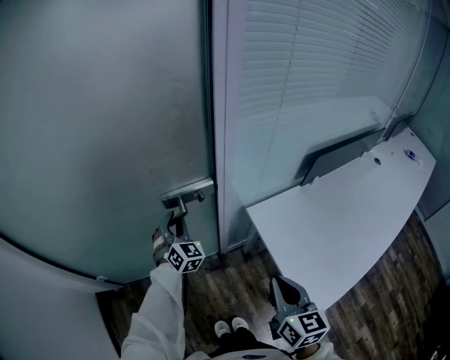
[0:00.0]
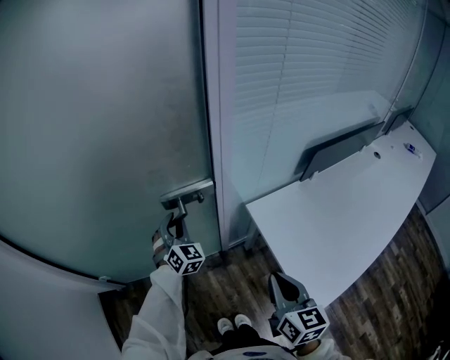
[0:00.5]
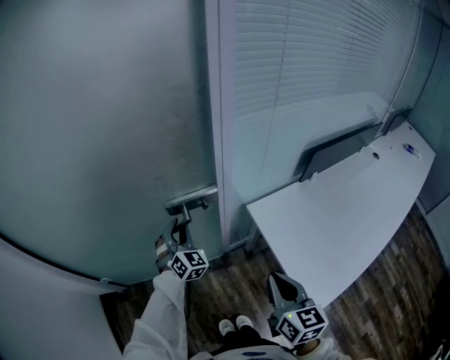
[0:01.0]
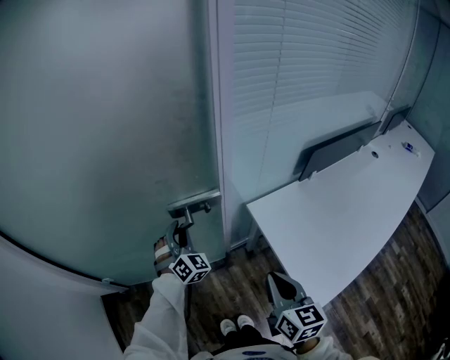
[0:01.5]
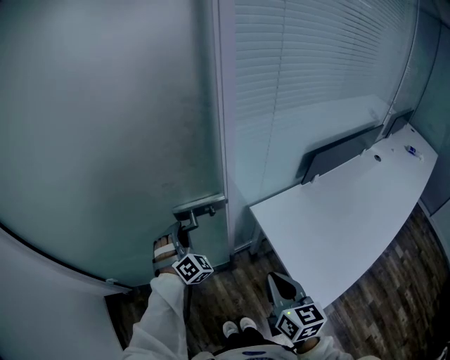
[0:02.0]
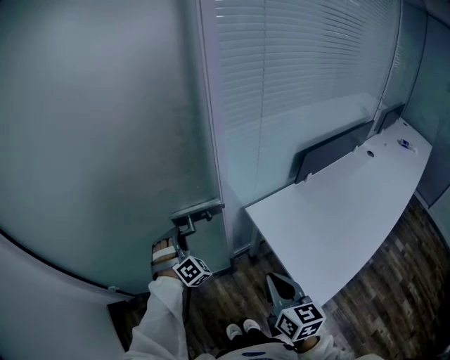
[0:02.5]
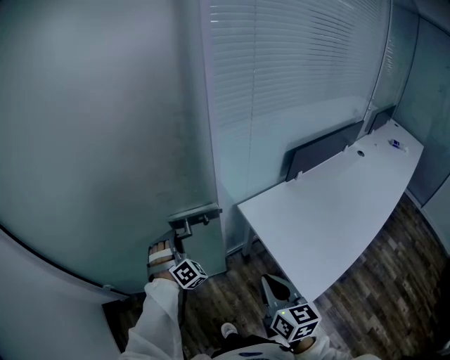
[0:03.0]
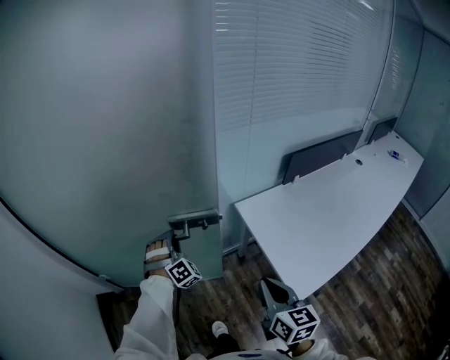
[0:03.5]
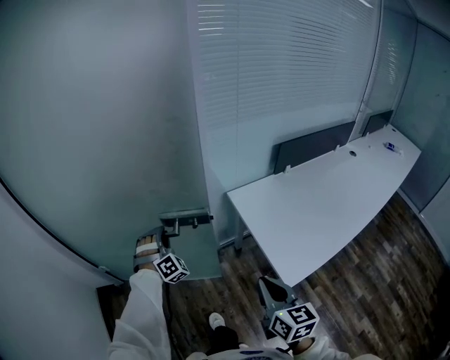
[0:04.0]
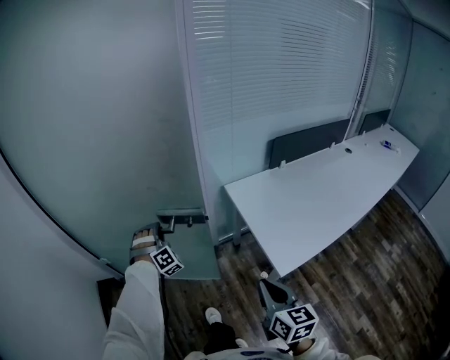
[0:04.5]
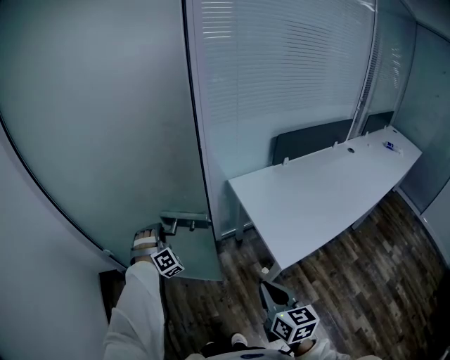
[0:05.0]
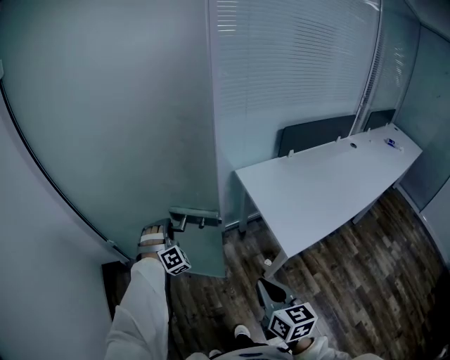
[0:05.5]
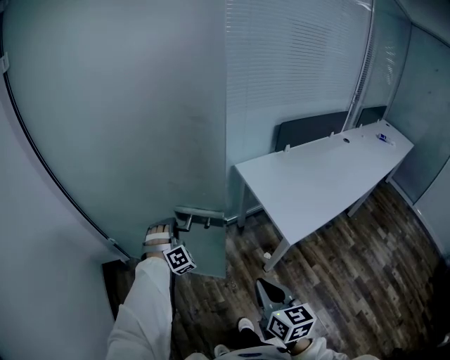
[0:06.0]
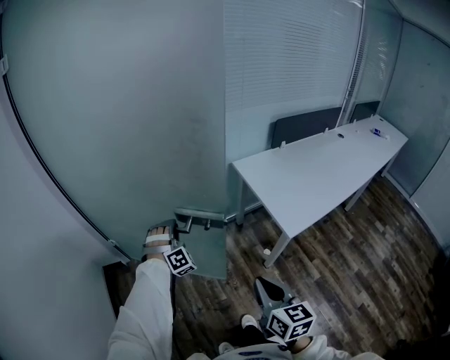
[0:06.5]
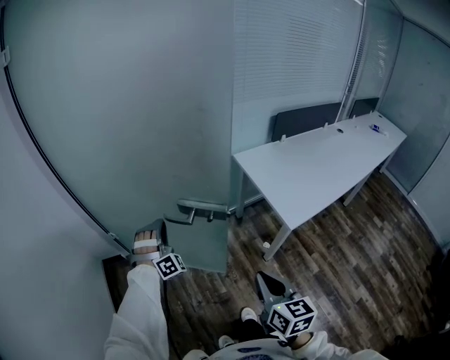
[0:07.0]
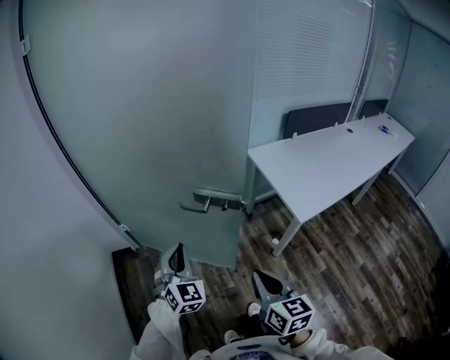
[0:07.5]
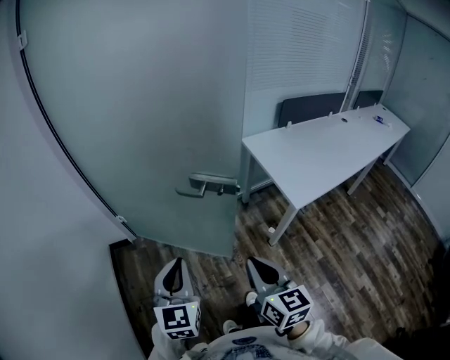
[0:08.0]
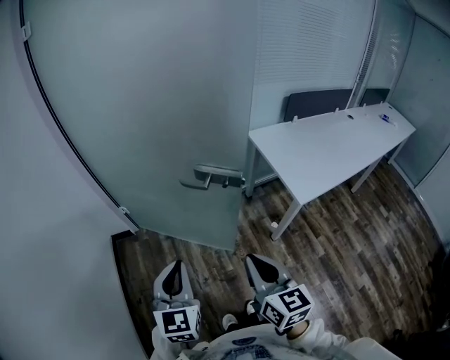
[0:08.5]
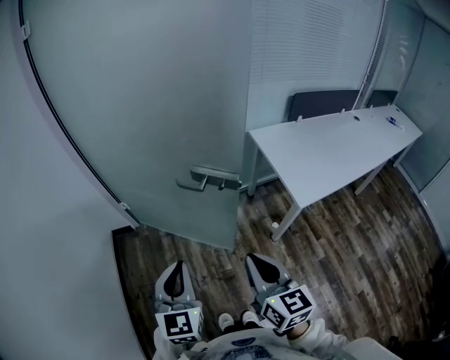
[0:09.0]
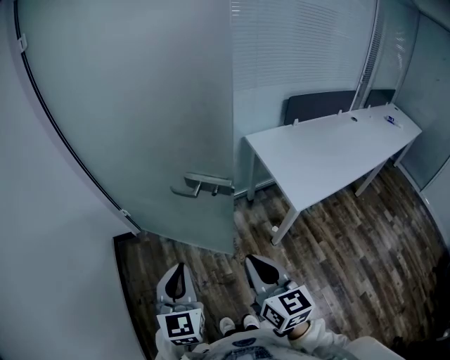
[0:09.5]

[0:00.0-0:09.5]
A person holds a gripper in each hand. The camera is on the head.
0:00.0 to 0:02.0: The left gripper moves backward, roughly 5 cm, and rotates roughly 30 degrees.
0:02.0 to 0:04.0: Both grippers move backward, approximately 15 cm.
0:04.0 to 0:05.5: The two grippers go roughly 15 cm backward and to the left.
0:05.5 to 0:07.5: The left gripper shifts some 25 cm backward and to the left, and twists roughly 50 degrees counterclockwise, seen from behind, while the right gripper goes approximately 15 cm to the left and backward.
0:07.5 to 0:09.5: The left gripper heads backward and upward, covering approximately 15 cm, and rotates approximately 30 degrees. The right gripper travels upward by about 5 cm.

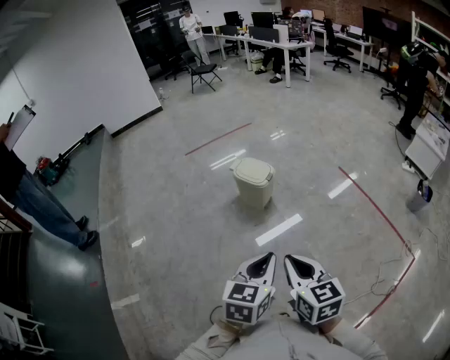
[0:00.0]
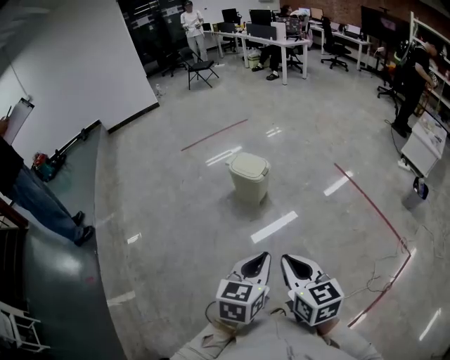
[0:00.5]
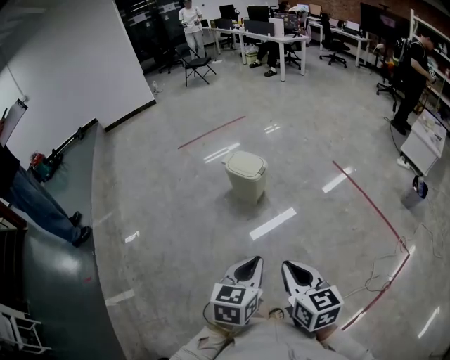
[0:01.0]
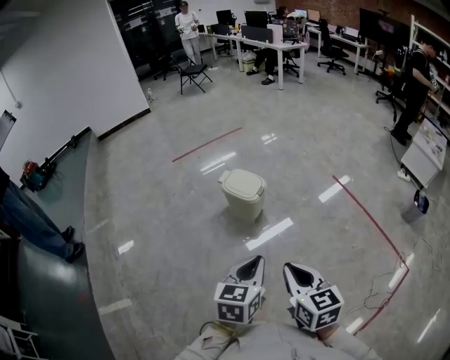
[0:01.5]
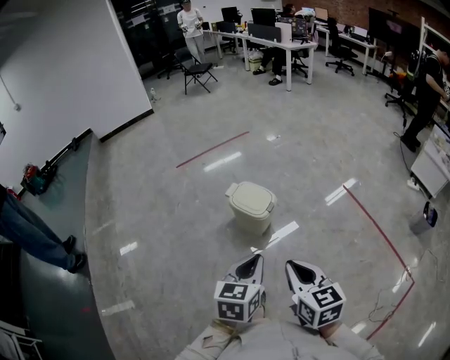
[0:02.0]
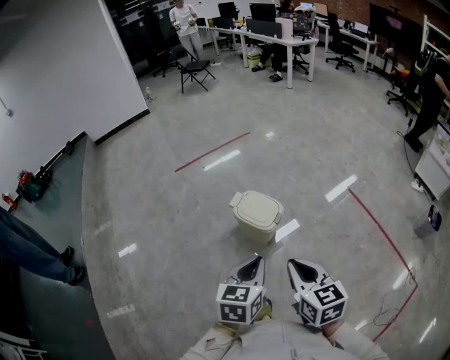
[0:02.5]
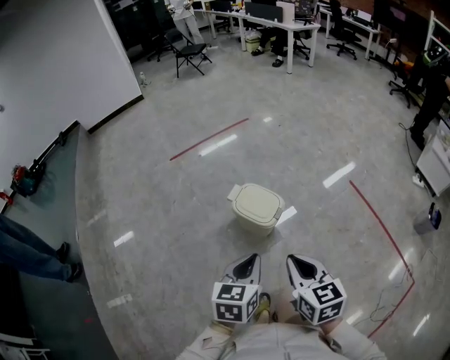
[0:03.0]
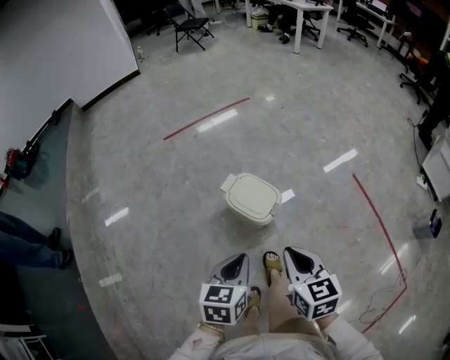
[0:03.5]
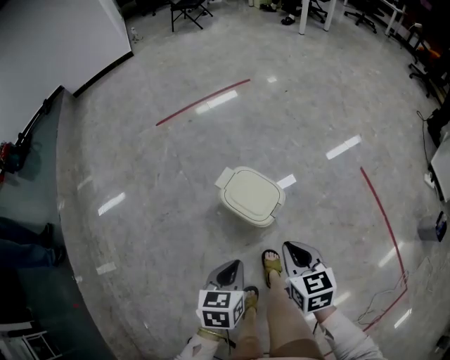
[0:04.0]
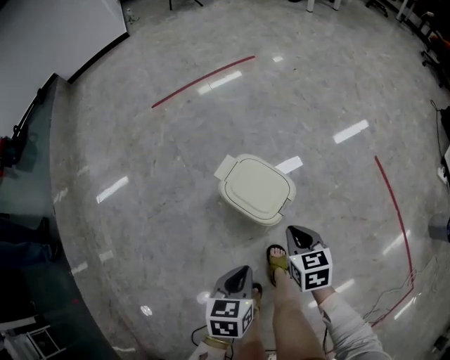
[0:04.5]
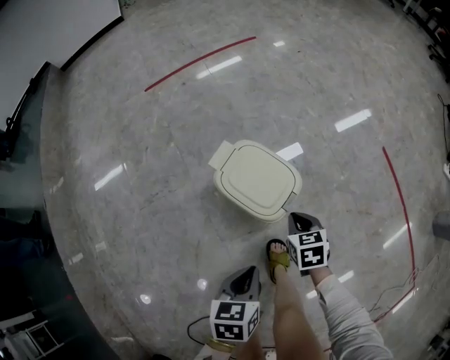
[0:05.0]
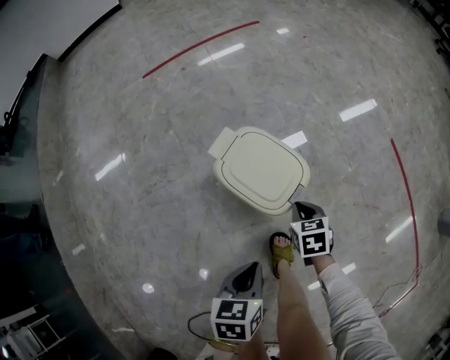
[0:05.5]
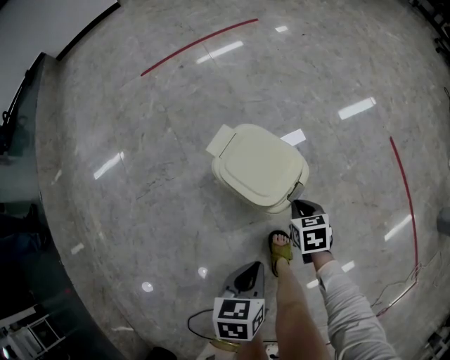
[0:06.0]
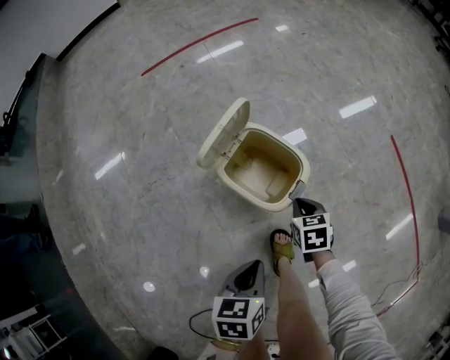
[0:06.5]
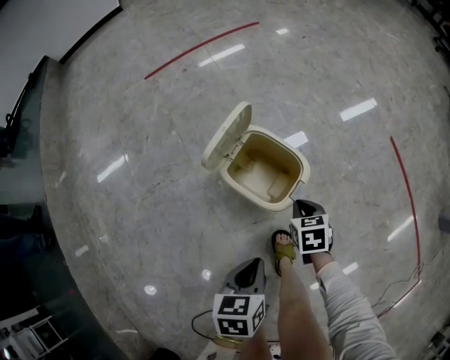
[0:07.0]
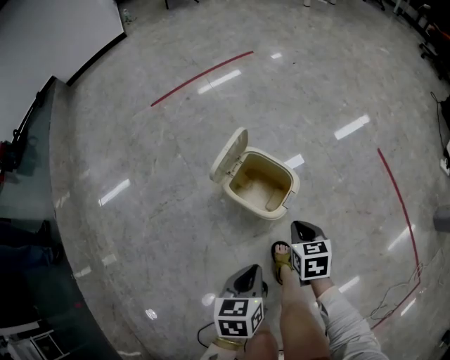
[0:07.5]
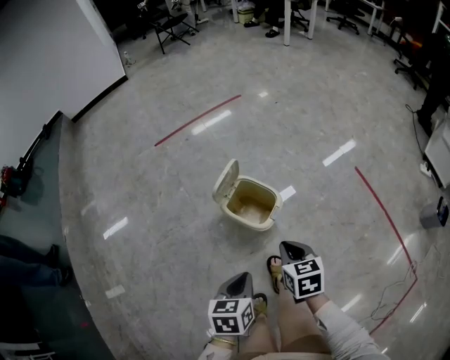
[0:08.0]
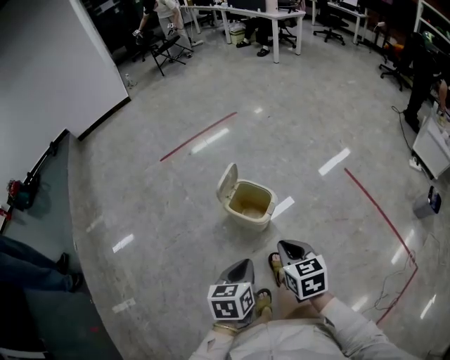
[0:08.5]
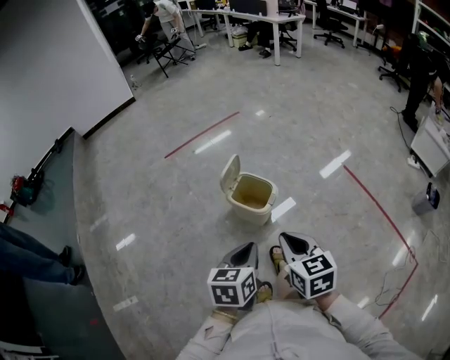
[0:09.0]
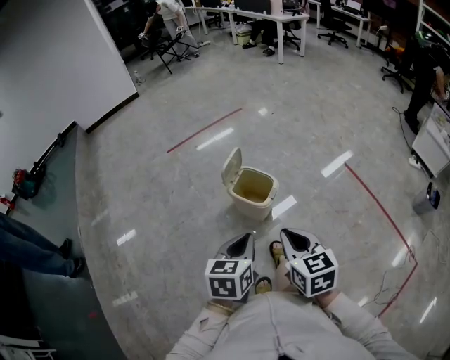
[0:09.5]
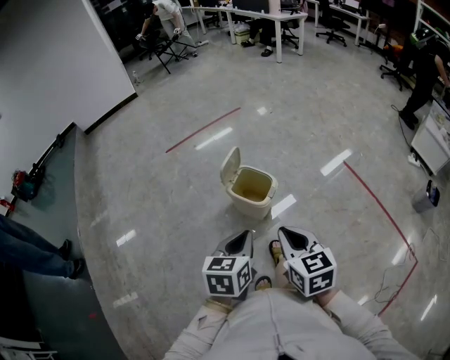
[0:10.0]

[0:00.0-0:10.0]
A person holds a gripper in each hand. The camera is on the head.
0:00.0 to 0:02.0: Both grippers travel together forward, approximately 25 cm.
0:02.0 to 0:04.0: Both grippers travel together forward and downward, some 30 cm. The left gripper turns by roughly 20 degrees.
0:04.0 to 0:06.0: The right gripper goes approximately 35 cm downward, and turns by about 20 degrees. The left gripper moves downward, about 20 cm.
0:06.0 to 0:08.0: The right gripper goes approximately 30 cm upward. The left gripper moves upward, approximately 20 cm.
0:08.0 to 0:10.0: Both grippers move upward and backward, approximately 20 cm.

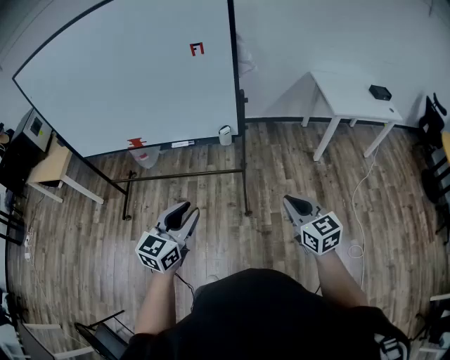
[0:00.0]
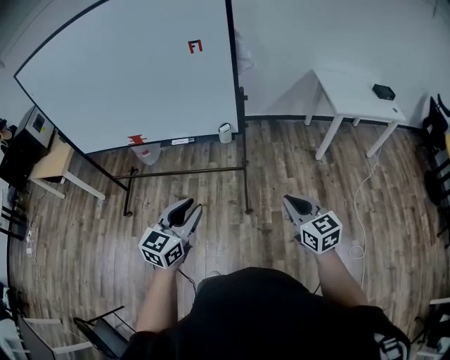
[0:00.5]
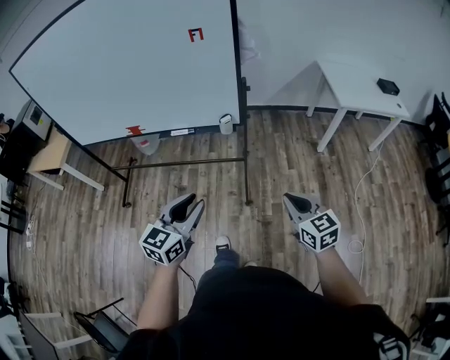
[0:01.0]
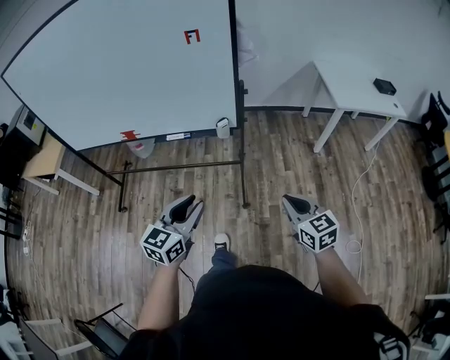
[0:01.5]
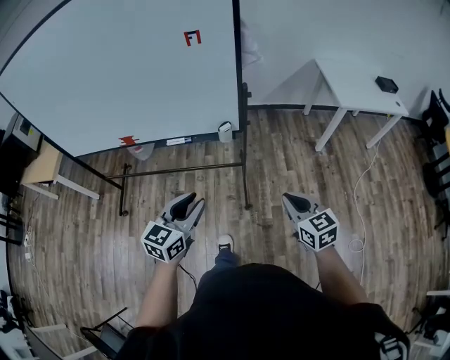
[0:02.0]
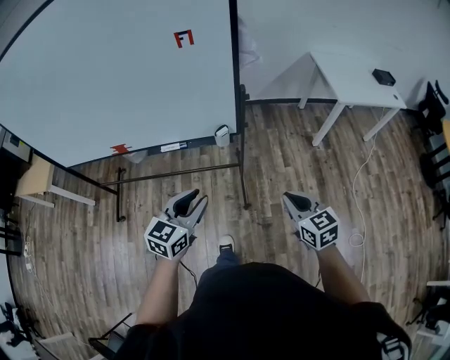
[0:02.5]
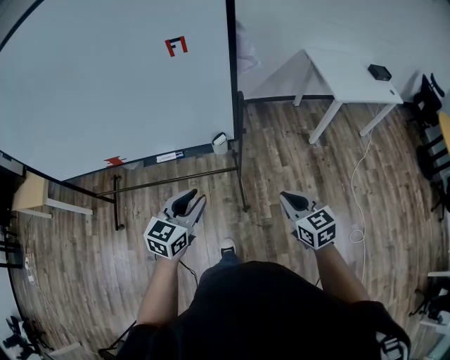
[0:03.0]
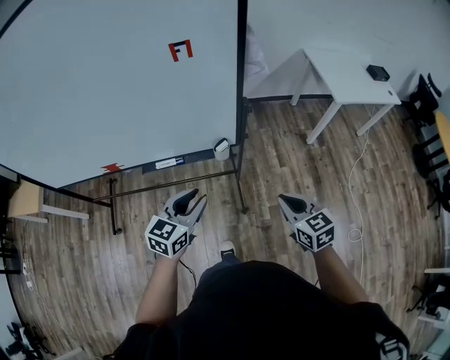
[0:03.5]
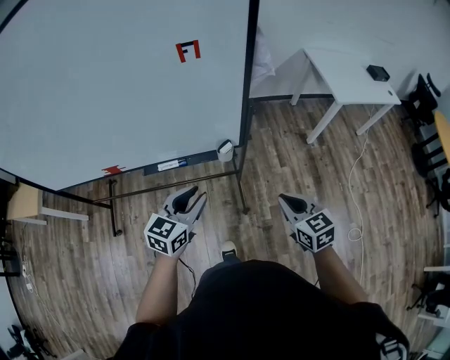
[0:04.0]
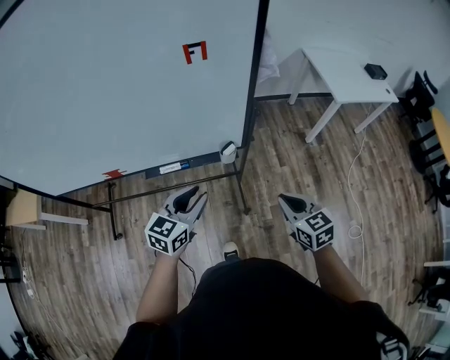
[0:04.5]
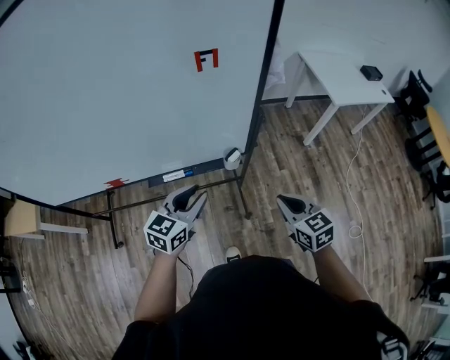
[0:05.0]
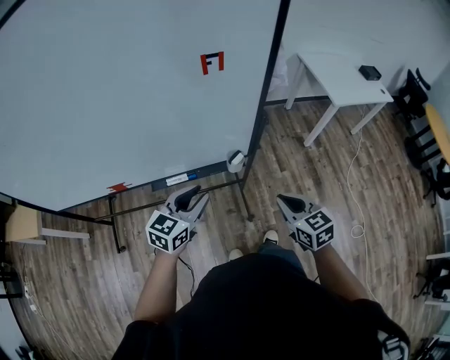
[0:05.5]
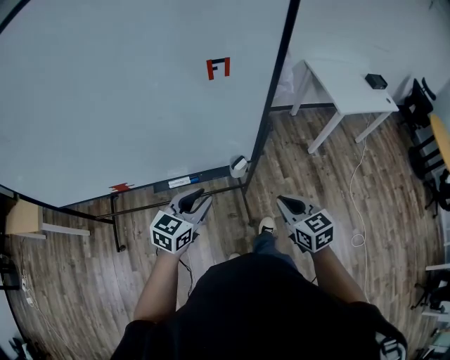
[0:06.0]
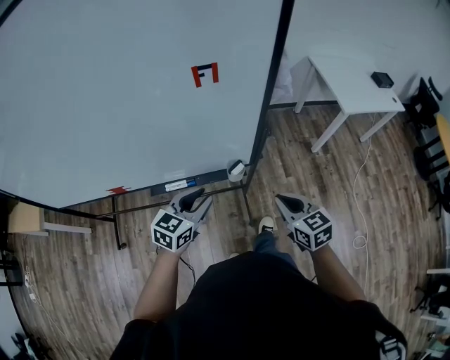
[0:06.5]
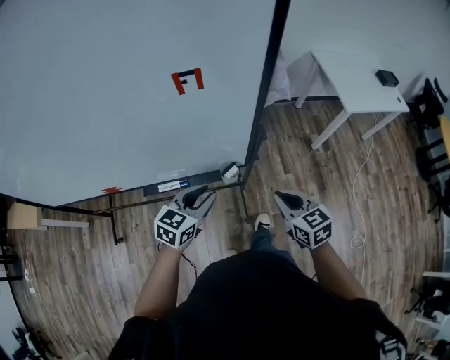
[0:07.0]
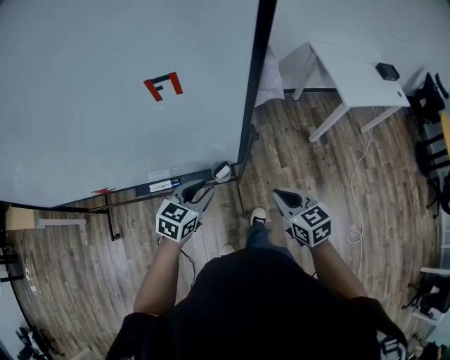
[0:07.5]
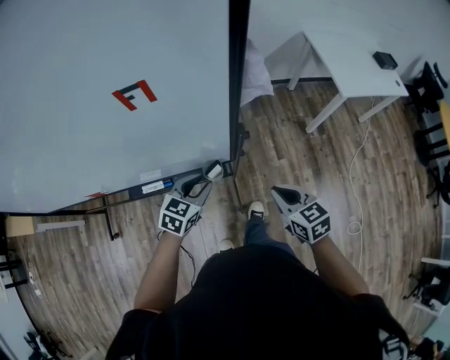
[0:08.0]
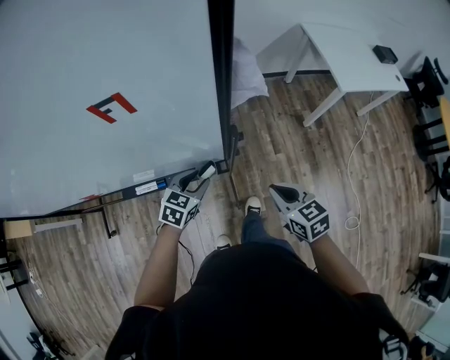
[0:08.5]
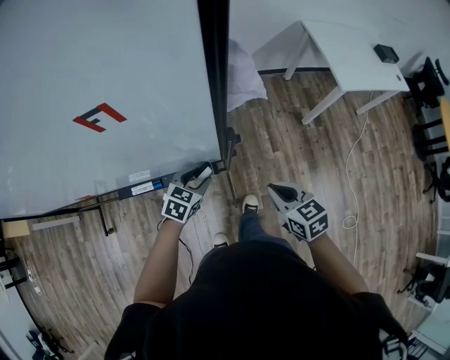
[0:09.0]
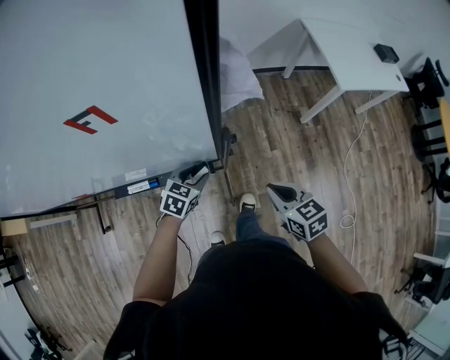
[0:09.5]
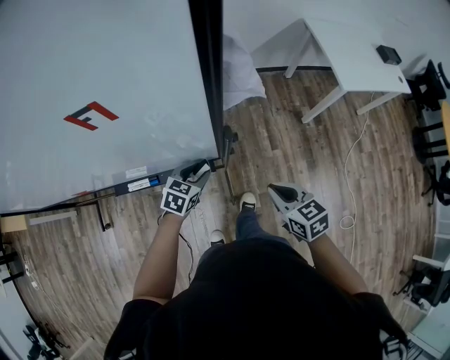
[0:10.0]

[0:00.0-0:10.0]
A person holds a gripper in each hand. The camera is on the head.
0:00.0 to 0:02.0: The left gripper shifts roughly 10 cm forward. Meanwhile the right gripper goes approximately 10 cm forward and downward.
0:02.0 to 0:04.0: The left gripper shifts about 20 cm forward. The right gripper goes approximately 15 cm forward and to the left.
0:04.0 to 0:06.0: The right gripper shifts roughly 5 cm to the left. The left gripper moves to the left and forward, roughly 10 cm.
0:06.0 to 0:08.0: Both grippers travel together forward, to the right and downward, about 15 cm.
0:08.0 to 0:10.0: The left gripper heads downward and forward, covering approximately 10 cm.
